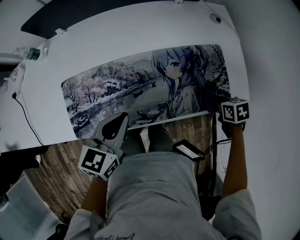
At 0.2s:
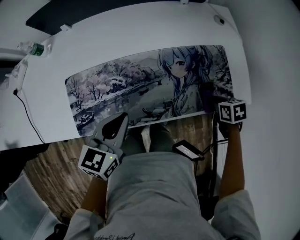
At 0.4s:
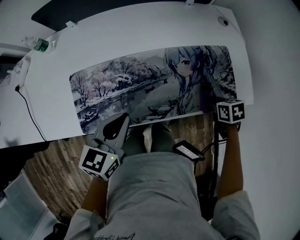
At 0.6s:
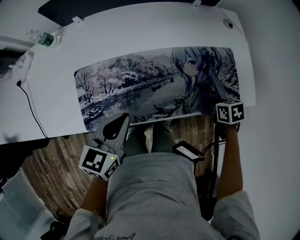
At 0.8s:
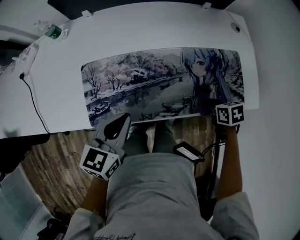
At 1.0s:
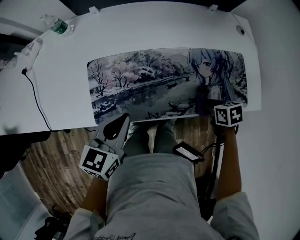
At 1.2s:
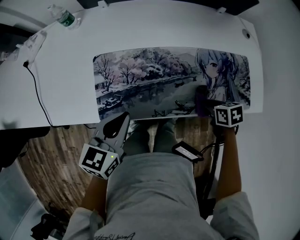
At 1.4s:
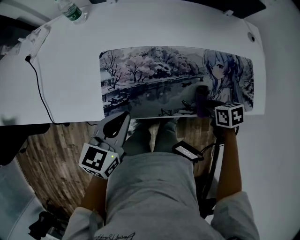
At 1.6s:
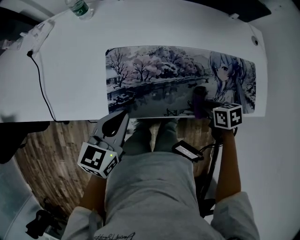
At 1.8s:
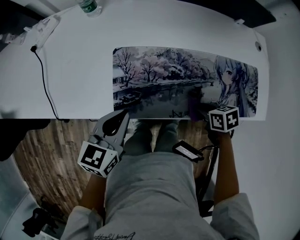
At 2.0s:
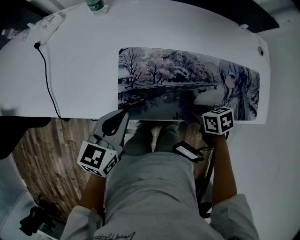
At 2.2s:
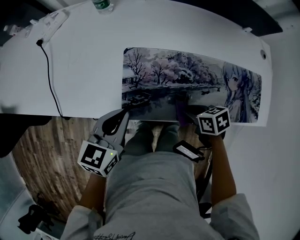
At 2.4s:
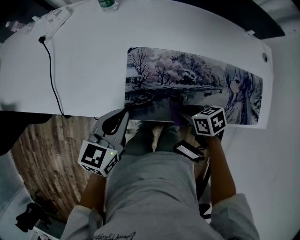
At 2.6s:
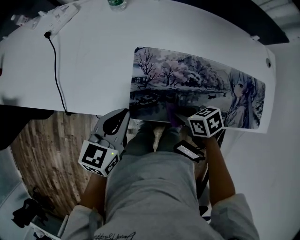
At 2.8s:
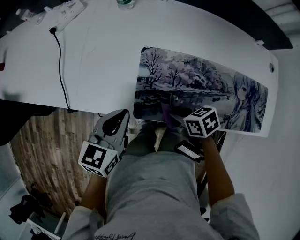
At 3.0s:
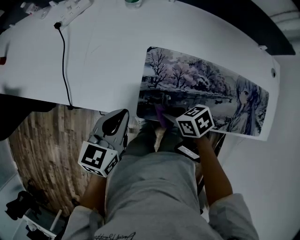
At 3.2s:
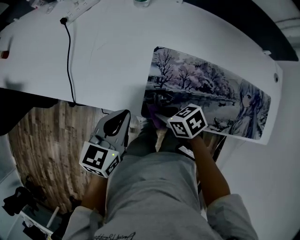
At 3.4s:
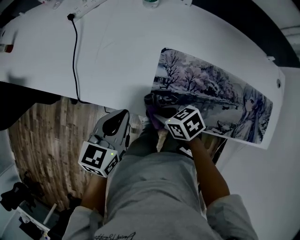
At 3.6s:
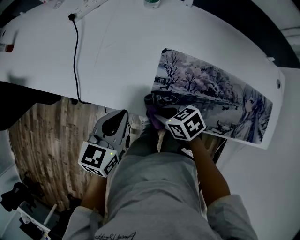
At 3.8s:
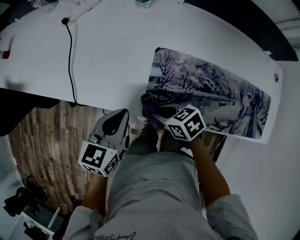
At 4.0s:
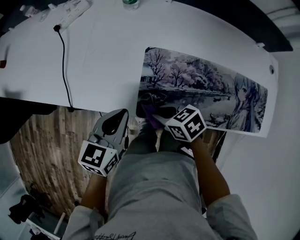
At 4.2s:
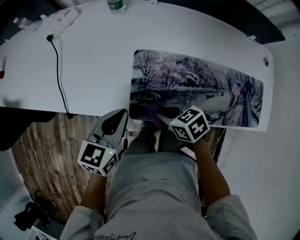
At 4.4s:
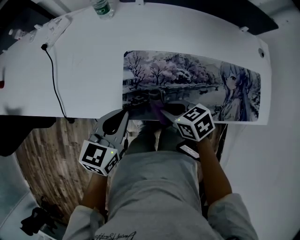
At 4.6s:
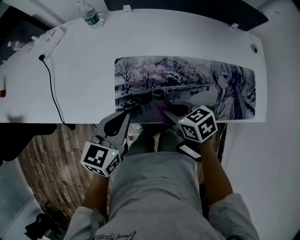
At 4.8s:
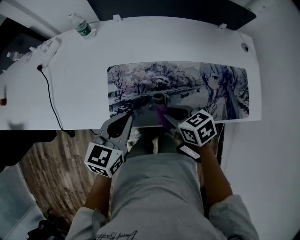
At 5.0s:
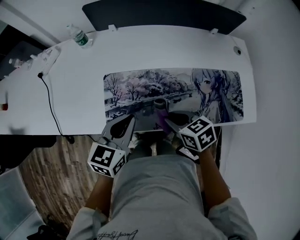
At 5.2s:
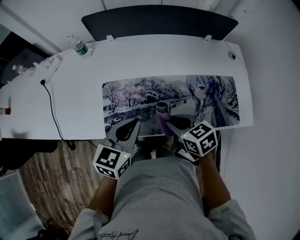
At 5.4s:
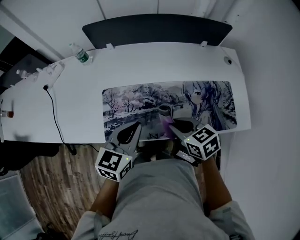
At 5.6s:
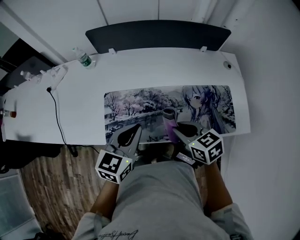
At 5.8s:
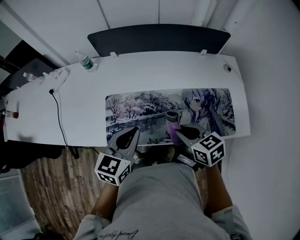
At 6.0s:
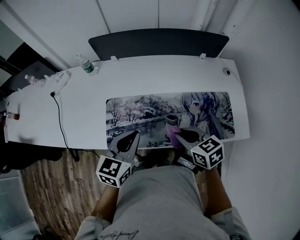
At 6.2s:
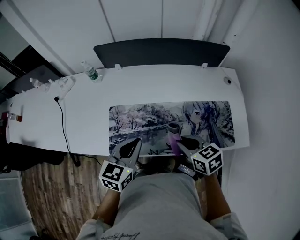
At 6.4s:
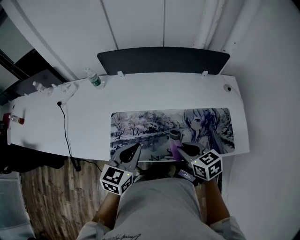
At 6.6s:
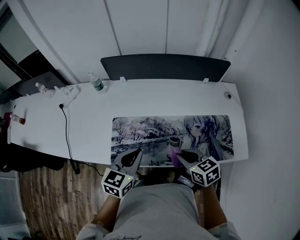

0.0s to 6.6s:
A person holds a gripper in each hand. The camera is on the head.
0.0s to 1.6s: The two grippers go some 25 cm to the left.
1.6s to 3.2s: The right gripper shifts approximately 30 cm to the left, and rotates roughly 30 degrees, while the left gripper moves to the left, about 15 cm.
3.2s to 5.0s: The right gripper shifts by roughly 25 cm, and swivels approximately 30 degrees. Meanwhile the left gripper shifts by roughly 20 cm.
5.0s to 6.6s: The left gripper shifts approximately 5 cm upward. Meanwhile the right gripper is displaced to the right and upward by approximately 10 cm.

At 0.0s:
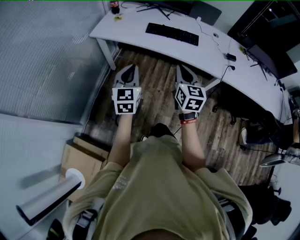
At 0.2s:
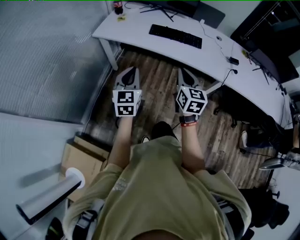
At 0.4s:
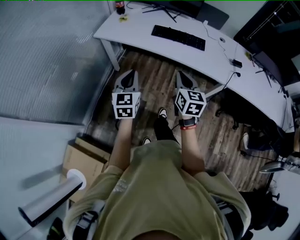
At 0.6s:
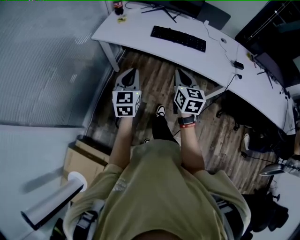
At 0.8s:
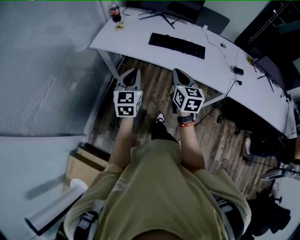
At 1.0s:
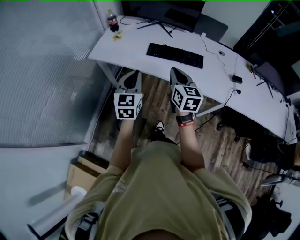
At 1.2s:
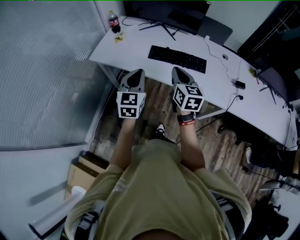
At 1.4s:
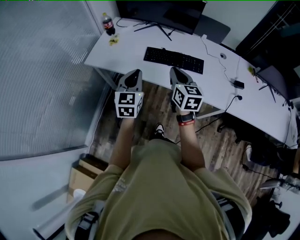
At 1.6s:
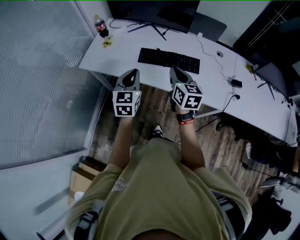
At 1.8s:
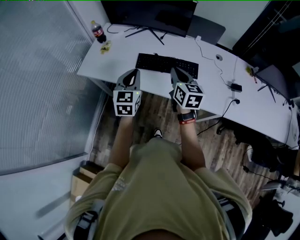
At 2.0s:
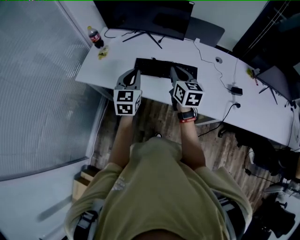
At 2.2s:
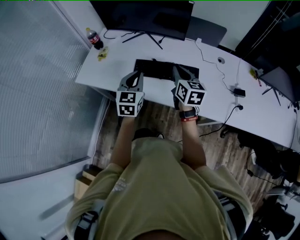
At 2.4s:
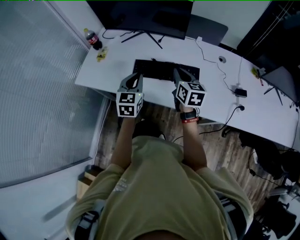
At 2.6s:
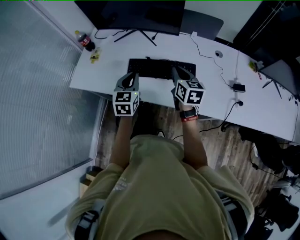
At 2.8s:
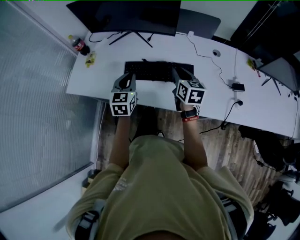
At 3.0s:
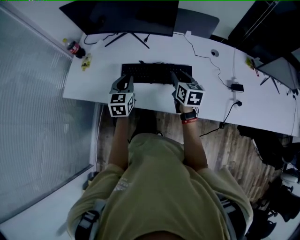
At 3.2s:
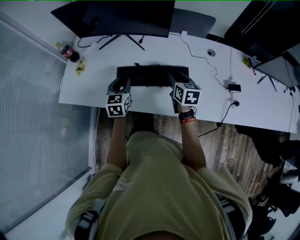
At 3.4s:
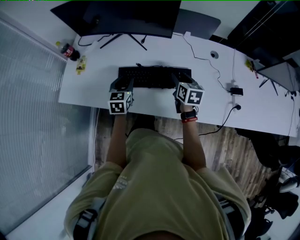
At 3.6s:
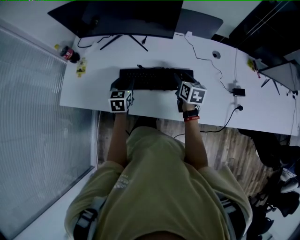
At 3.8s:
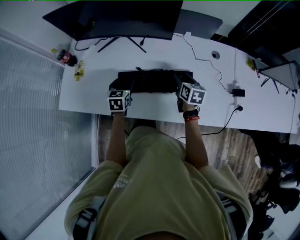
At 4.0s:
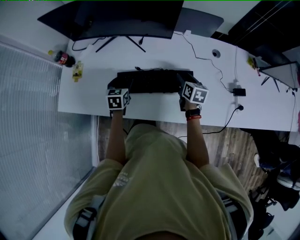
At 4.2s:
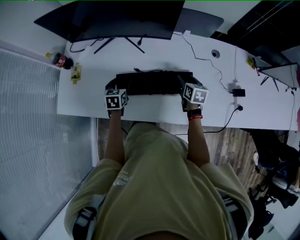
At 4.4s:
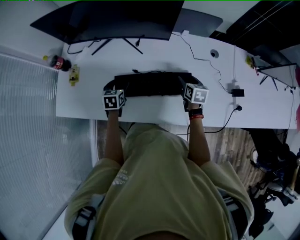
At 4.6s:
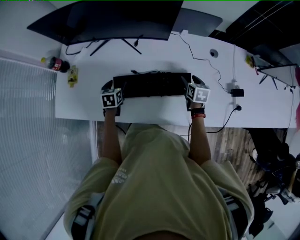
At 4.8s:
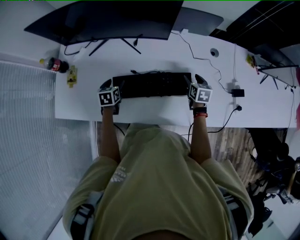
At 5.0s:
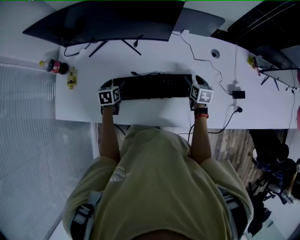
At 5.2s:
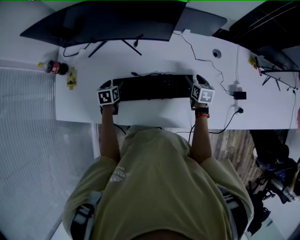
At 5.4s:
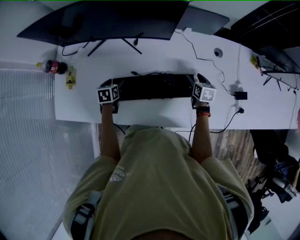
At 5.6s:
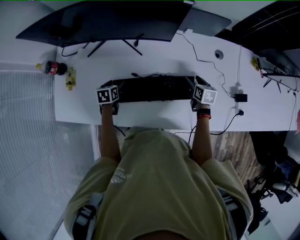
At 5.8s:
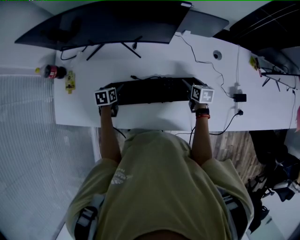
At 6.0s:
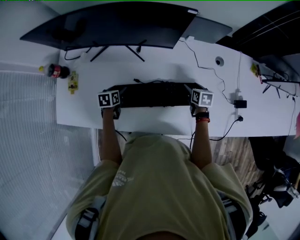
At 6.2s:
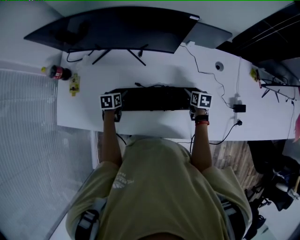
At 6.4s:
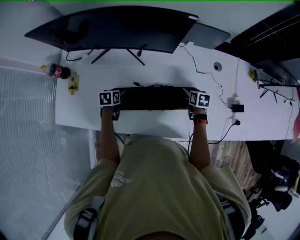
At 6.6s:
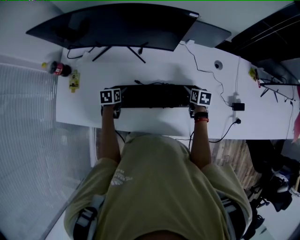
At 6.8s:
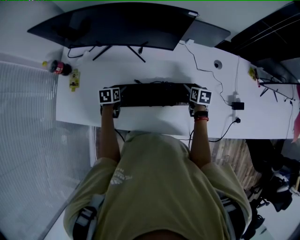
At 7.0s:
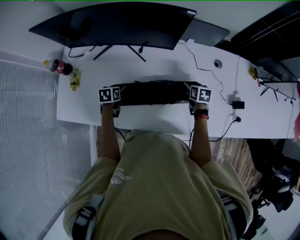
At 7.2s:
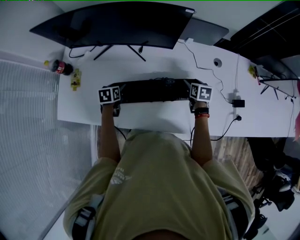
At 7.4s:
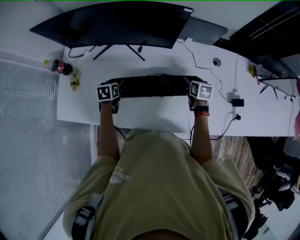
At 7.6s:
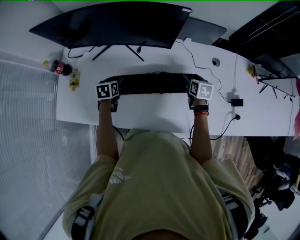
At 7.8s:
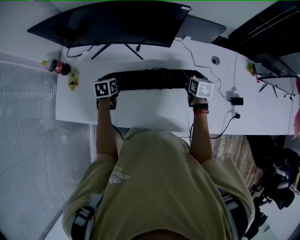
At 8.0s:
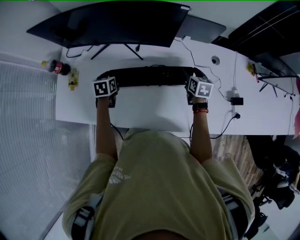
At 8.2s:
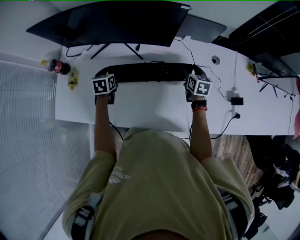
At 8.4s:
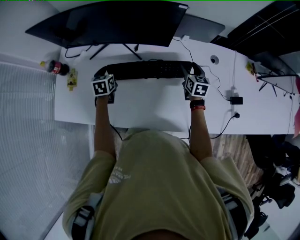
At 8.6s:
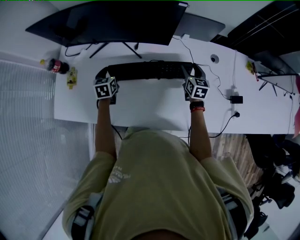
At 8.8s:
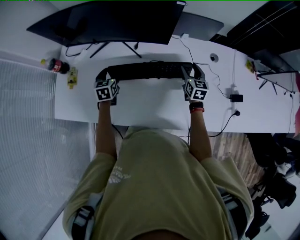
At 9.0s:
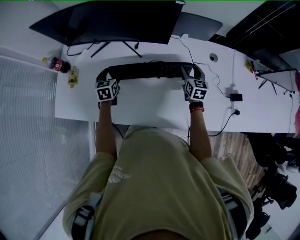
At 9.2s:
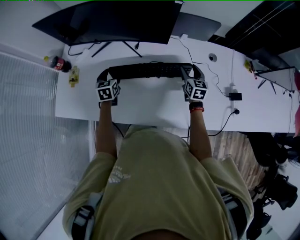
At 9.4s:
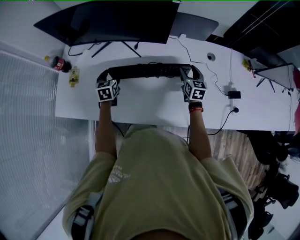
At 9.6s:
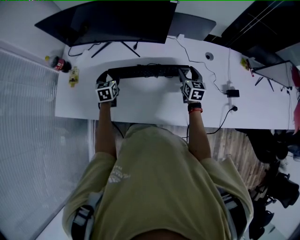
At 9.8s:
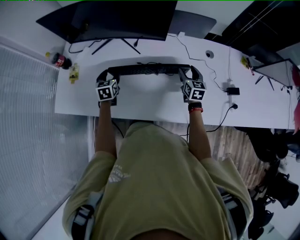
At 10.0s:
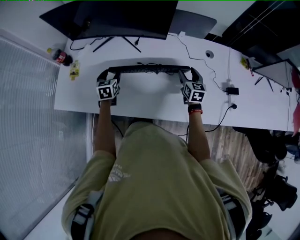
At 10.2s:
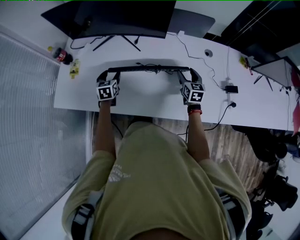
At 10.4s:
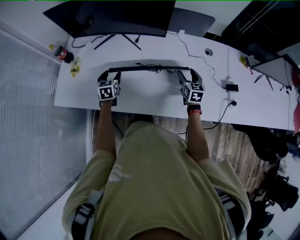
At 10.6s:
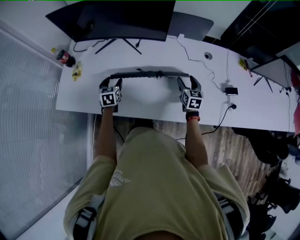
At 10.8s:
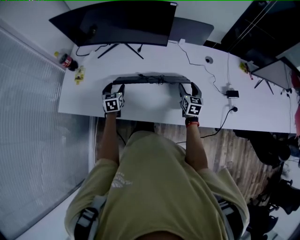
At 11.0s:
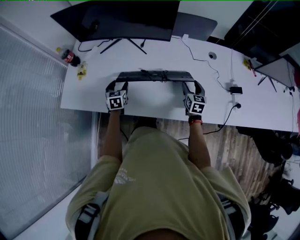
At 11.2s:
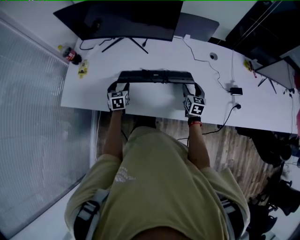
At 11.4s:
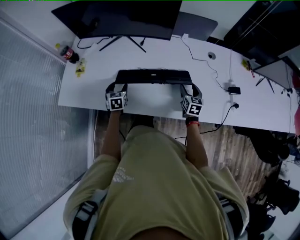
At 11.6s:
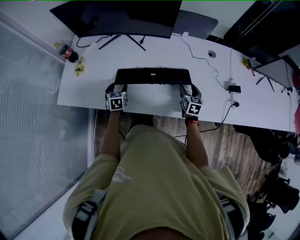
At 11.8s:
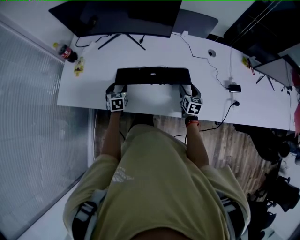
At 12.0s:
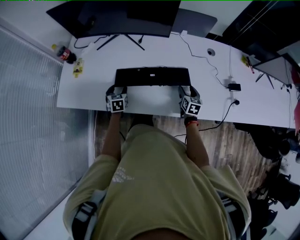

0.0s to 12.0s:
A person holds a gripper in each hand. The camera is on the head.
0.0s to 1.6s: Both grippers travel together forward, some 30 cm.
1.6s to 3.0s: The right gripper travels forward, to the right and downward by roughly 25 cm. Meanwhile the left gripper is displaced forward and downward by approximately 25 cm.
3.0s to 4.4s: The right gripper is displaced downward, forward and to the right by approximately 20 cm, and opens its fingers. Meanwhile the left gripper goes approximately 20 cm downward and forward, swivels some 30 degrees, and opens its fingers.
4.4s to 6.0s: The two grippers go some 5 cm downward.
6.0s to 7.6s: The two grippers go some 5 cm upward.
7.6s to 9.0s: The right gripper turns by about 20 degrees, while the left gripper turns by roughly 20 degrees.
9.0s to 10.4s: Both grippers move backward, approximately 10 cm.
10.4s to 12.0s: Both grippers move downward and backward, about 10 cm.

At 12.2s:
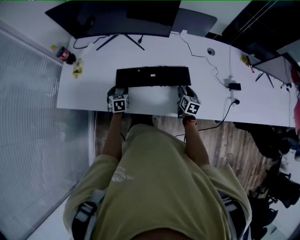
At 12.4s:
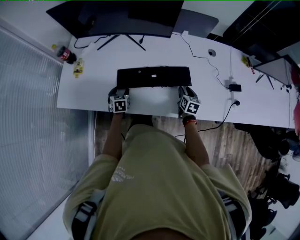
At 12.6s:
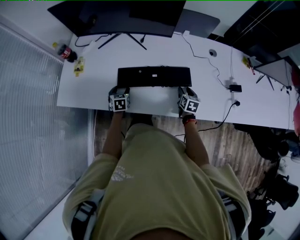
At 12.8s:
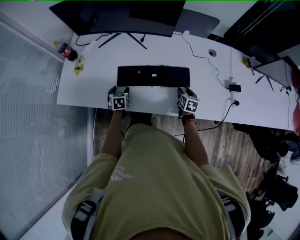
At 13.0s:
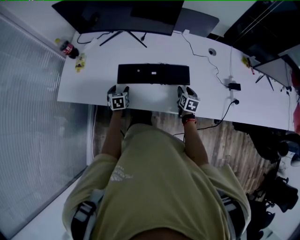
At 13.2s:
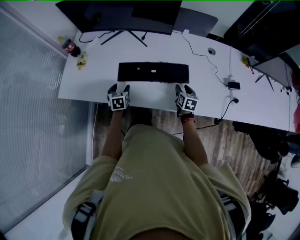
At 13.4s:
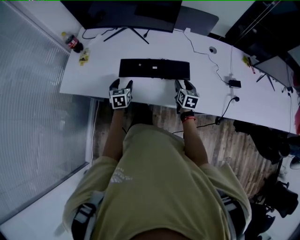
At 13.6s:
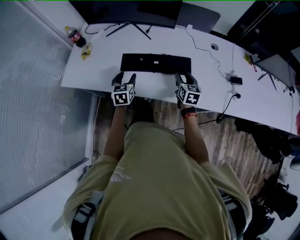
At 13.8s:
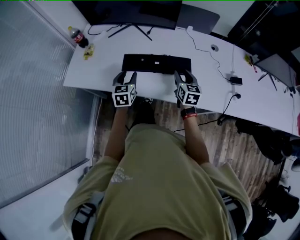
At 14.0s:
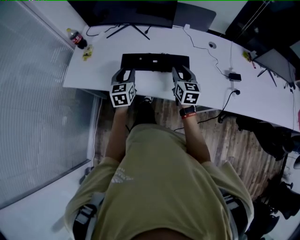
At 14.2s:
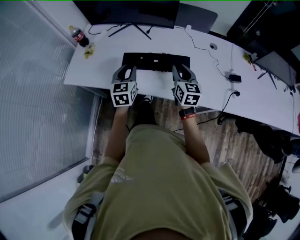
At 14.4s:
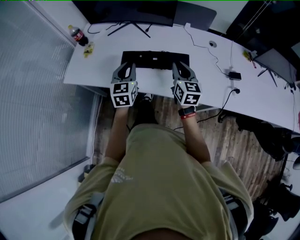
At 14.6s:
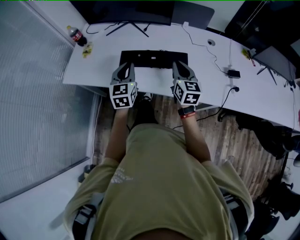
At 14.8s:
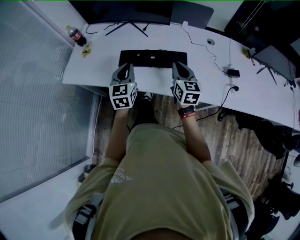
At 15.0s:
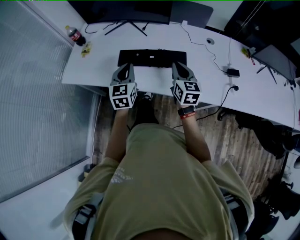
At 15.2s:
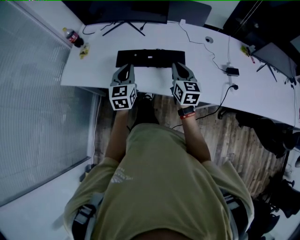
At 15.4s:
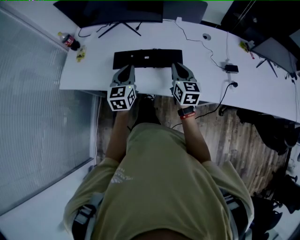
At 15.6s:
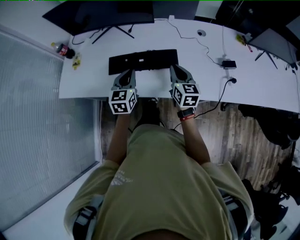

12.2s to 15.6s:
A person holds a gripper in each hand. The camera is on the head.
12.2s to 13.8s: The right gripper travels upward and to the left by some 15 cm. The left gripper travels upward and backward by approximately 20 cm, and swivels about 20 degrees.
13.8s to 15.6s: The left gripper is displaced to the right and upward by roughly 15 cm, and closes its fingers. Meanwhile the right gripper heads to the right, covering approximately 5 cm, and closes up.

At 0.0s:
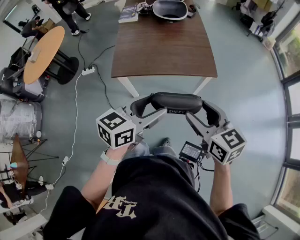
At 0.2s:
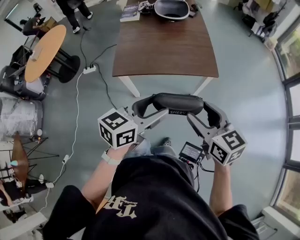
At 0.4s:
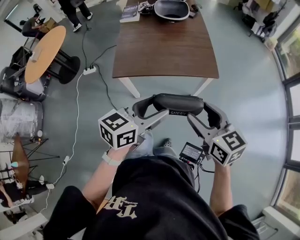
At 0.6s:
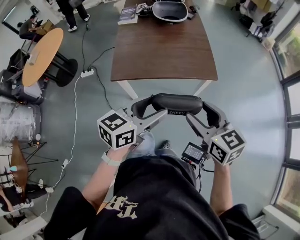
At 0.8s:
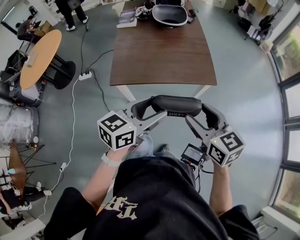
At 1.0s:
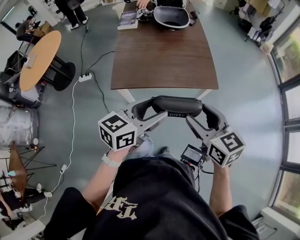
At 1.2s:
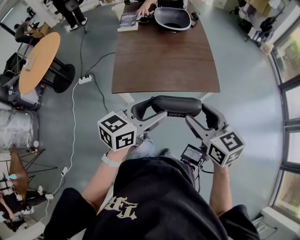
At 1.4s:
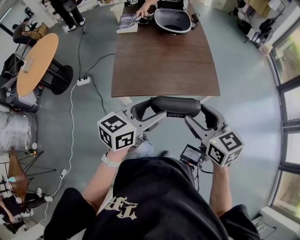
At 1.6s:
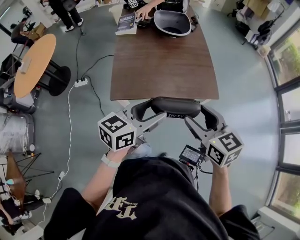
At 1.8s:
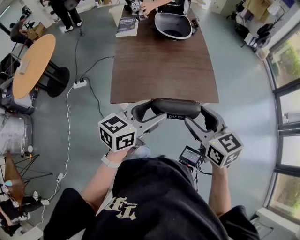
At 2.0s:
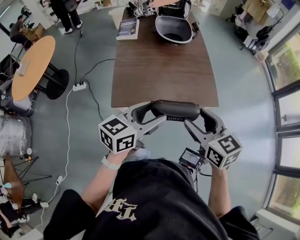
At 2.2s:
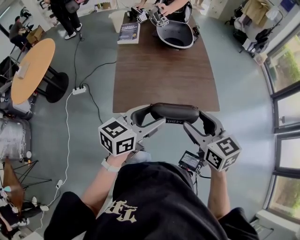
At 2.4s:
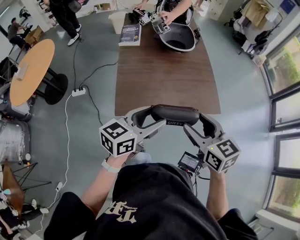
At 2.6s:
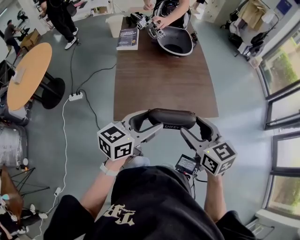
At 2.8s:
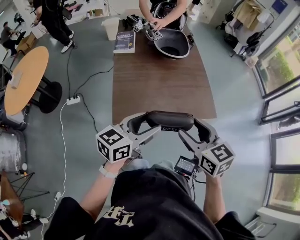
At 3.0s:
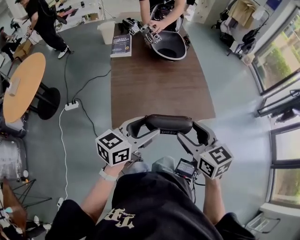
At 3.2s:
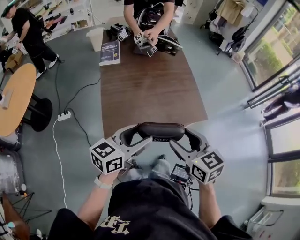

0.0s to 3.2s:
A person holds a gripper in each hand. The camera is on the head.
0.0s to 1.6s: The grippers both shift forward and to the left by about 15 cm.
1.6s to 3.2s: The grippers both shift to the left and forward by about 10 cm.
